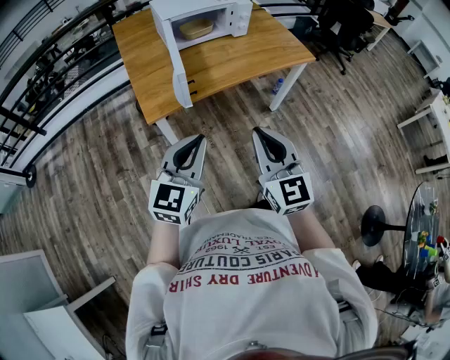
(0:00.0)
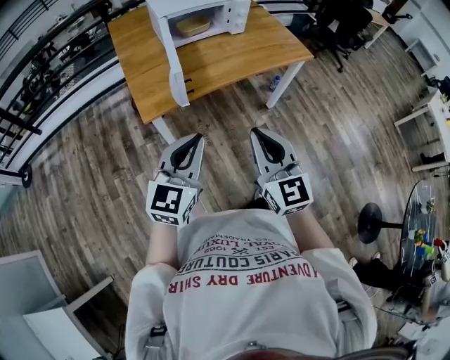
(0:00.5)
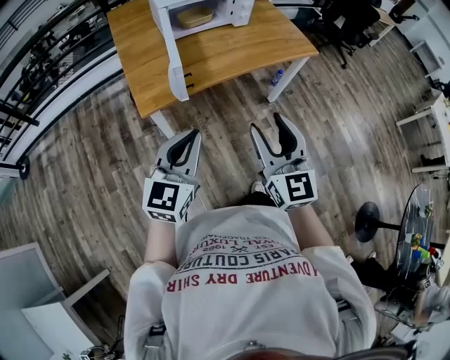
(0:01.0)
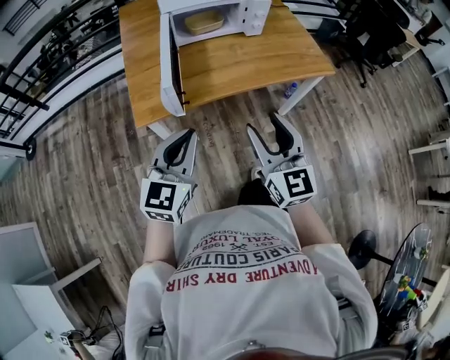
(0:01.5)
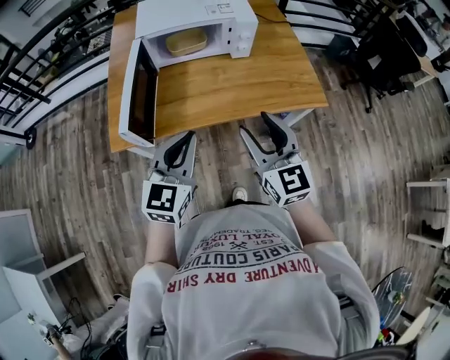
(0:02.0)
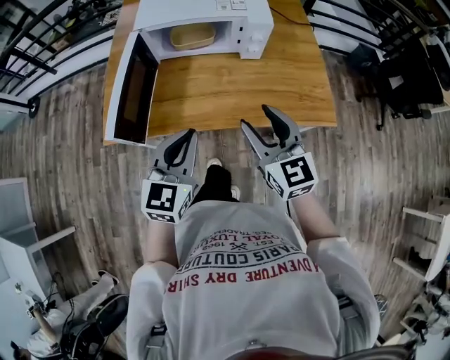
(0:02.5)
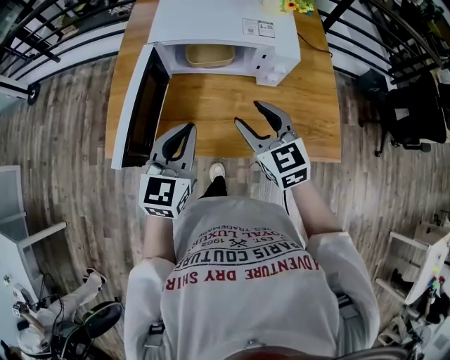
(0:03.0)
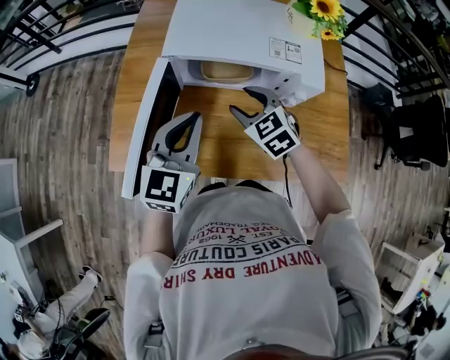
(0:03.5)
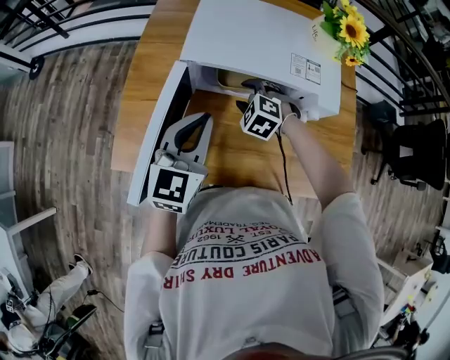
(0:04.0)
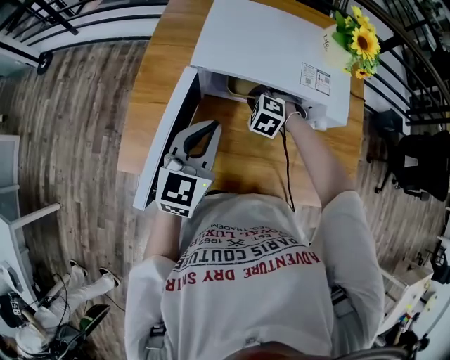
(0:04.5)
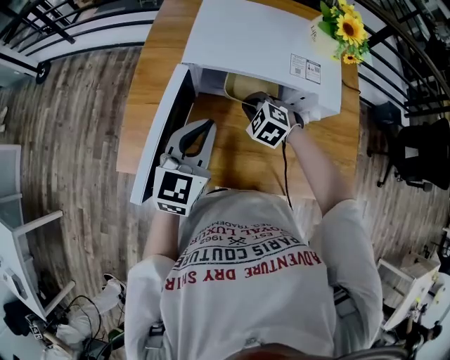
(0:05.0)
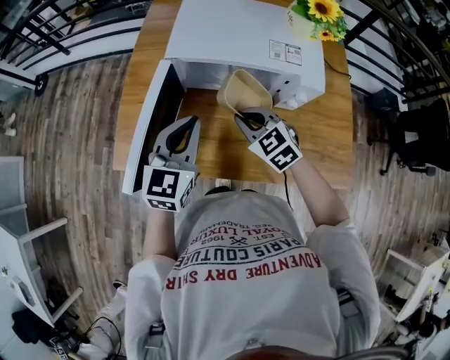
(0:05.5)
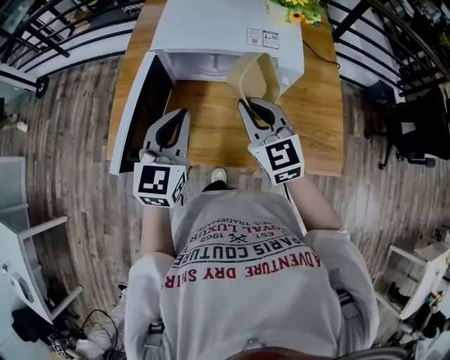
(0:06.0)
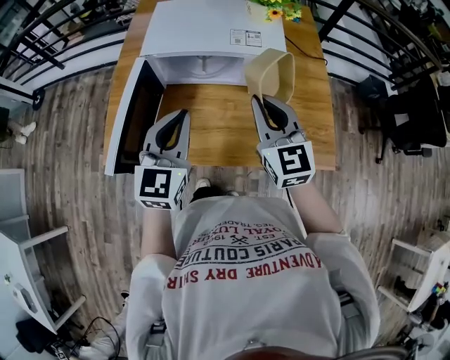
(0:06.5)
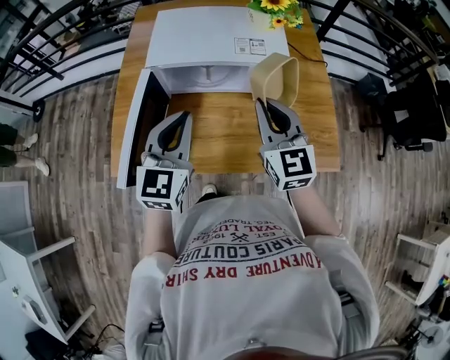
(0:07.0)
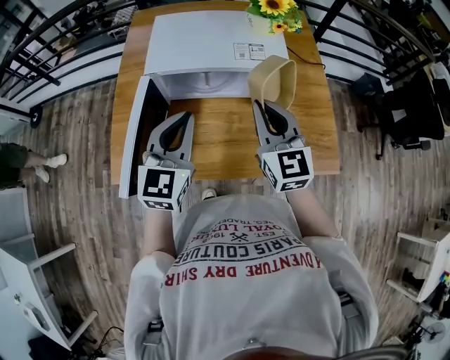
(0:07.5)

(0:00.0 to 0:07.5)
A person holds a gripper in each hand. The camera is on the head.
0:00.0 - 0:02.0: The grippers both shift forward and to the right by approximately 30 cm. The right gripper opens its fingers.
0:02.0 - 0:04.0: The left gripper travels forward by roughly 30 cm. Meanwhile the right gripper shifts some 50 cm forward and downward, and points its fingers about 50 degrees further downward.
0:04.0 - 0:05.5: The right gripper goes approximately 15 cm backward and upward, changes its angle by some 30 degrees, and closes.
0:05.5 - 0:07.5: The right gripper heads upward and to the right, covering about 20 cm, and changes its angle by about 40 degrees, while the left gripper moves upward, approximately 5 cm.

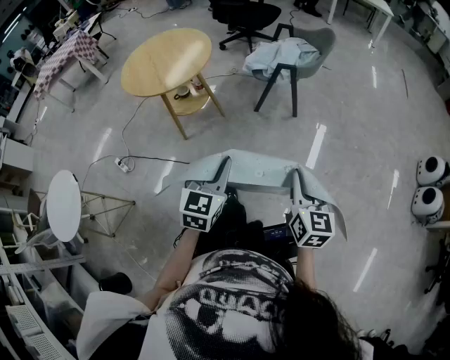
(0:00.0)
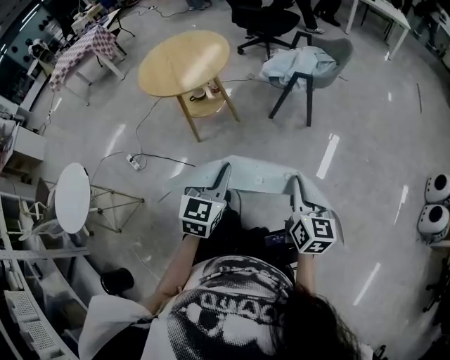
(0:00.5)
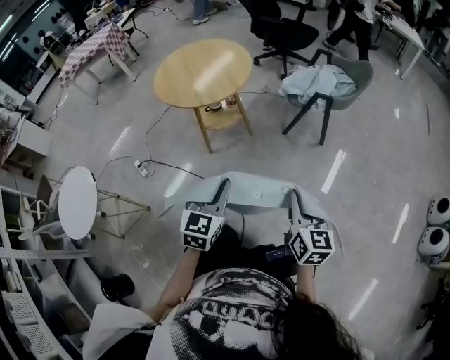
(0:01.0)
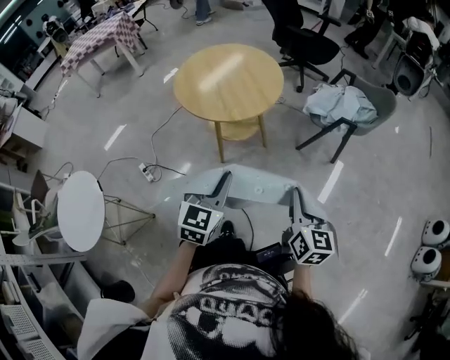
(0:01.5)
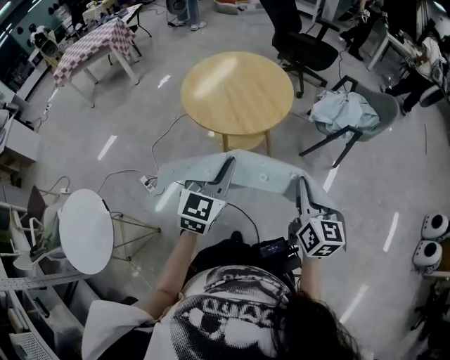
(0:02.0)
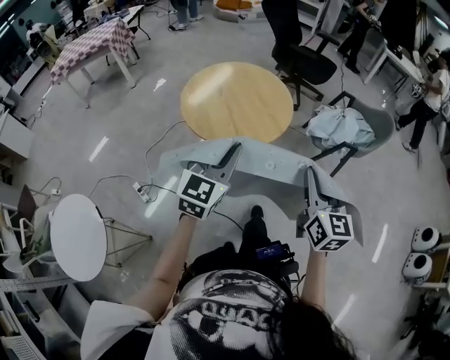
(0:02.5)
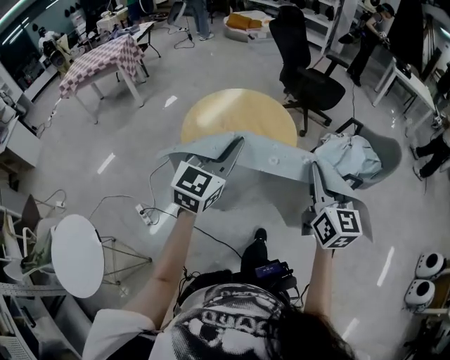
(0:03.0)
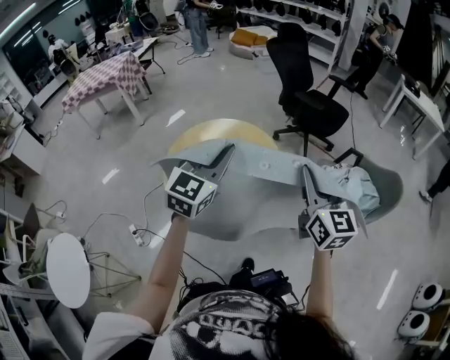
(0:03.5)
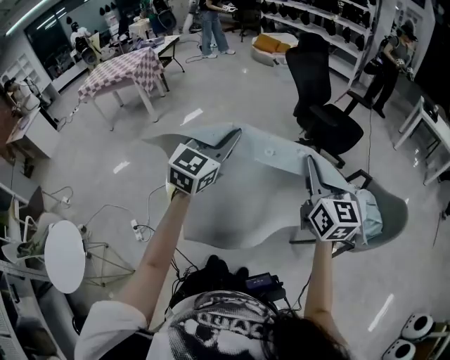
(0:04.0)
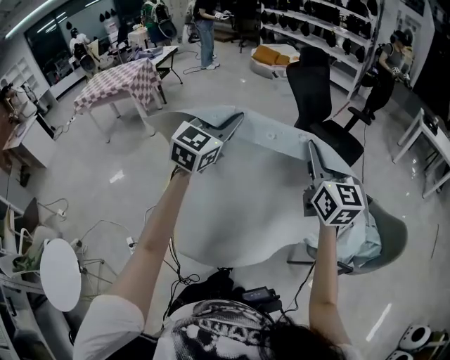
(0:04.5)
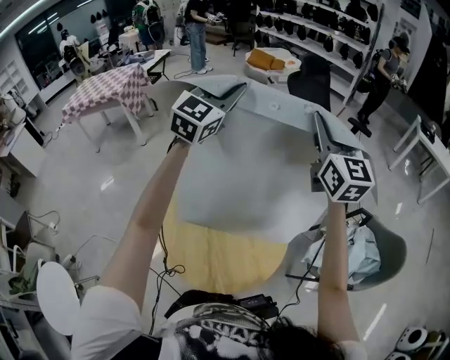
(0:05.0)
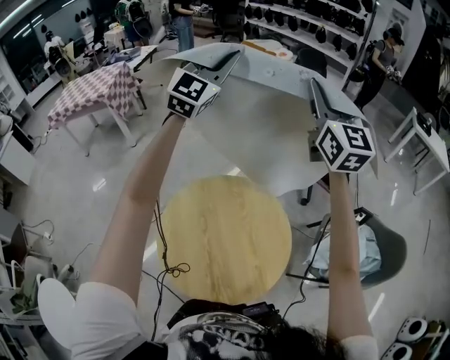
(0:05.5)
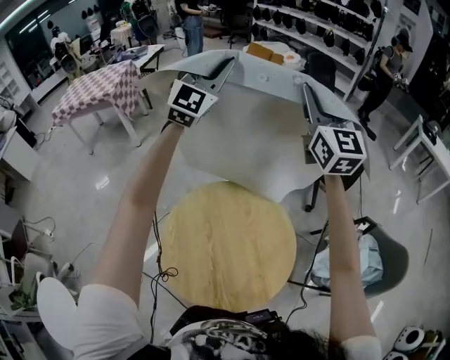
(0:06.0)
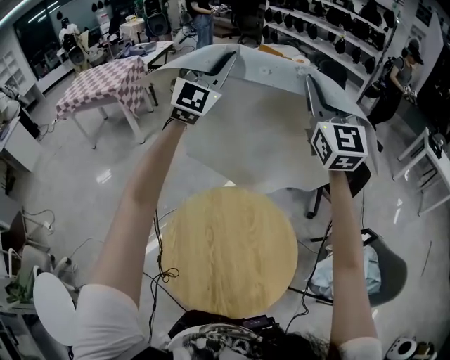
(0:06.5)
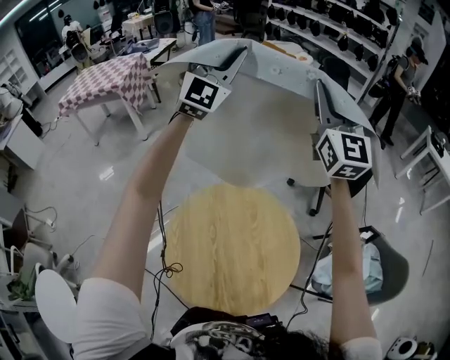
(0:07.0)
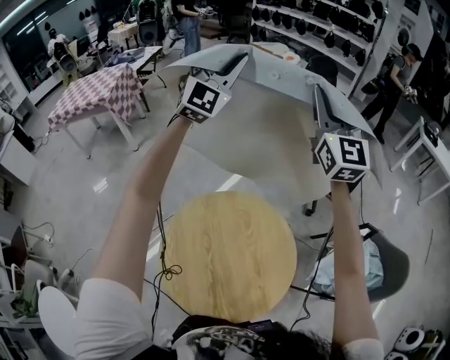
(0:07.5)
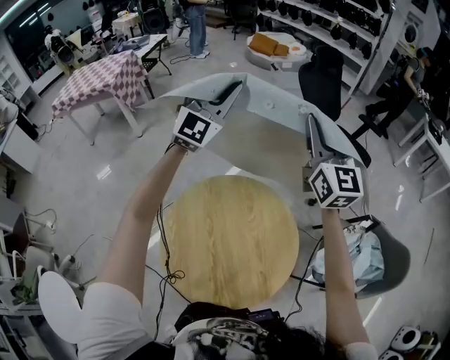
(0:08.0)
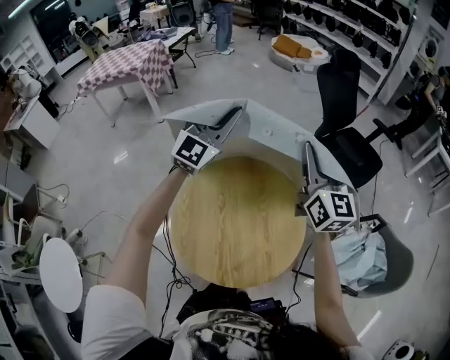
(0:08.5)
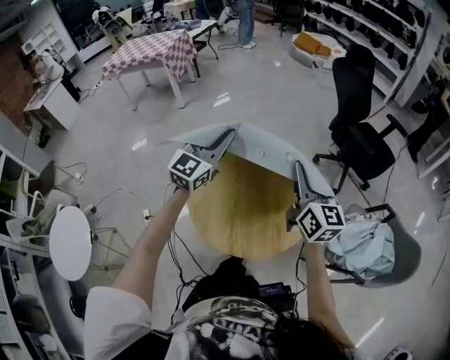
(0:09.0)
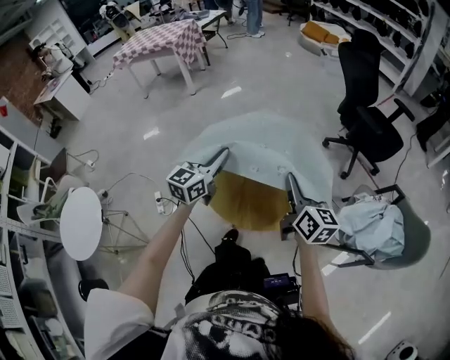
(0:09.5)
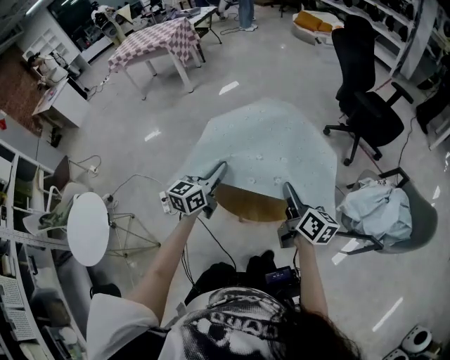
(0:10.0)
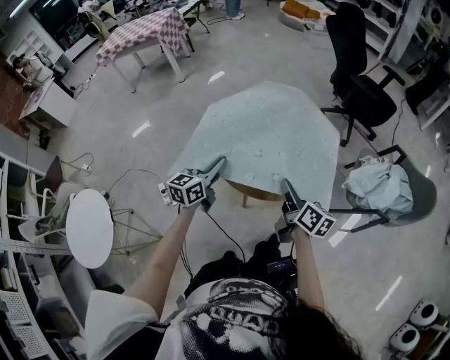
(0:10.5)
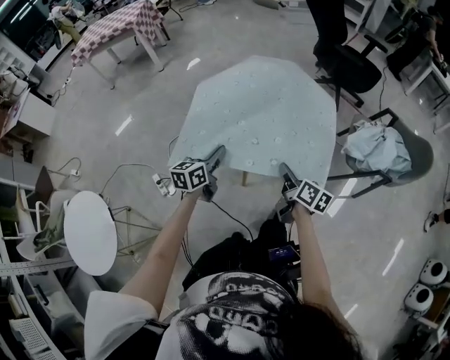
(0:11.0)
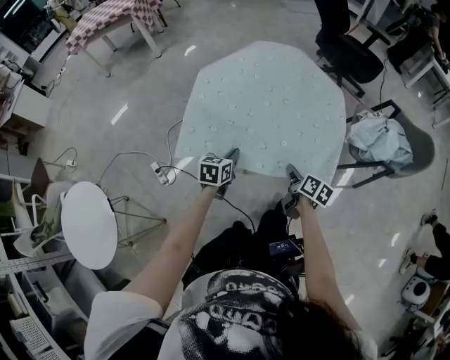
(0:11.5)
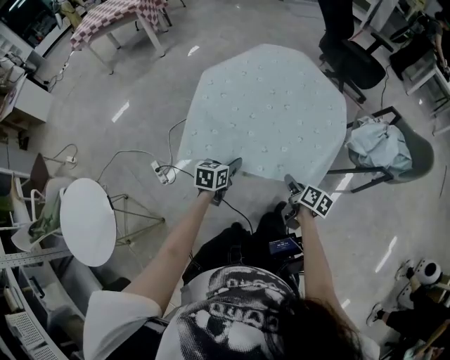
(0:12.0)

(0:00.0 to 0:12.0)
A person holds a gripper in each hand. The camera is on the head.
0:00.0 - 0:02.0: Both grippers are carried to the left and forward, approximately 40 cm.
0:02.0 - 0:04.0: The pair of grippers is taken forward, roughly 40 cm. The right gripper swivels some 20 degrees.
0:04.0 - 0:06.0: The two grippers travel together, forward and to the left, approximately 40 cm. The right gripper goes roughly 15 cm upward, and changes its angle by approximately 20 degrees. The left gripper turns by roughly 30 degrees.
0:06.0 - 0:08.0: The two grippers go some 10 cm downward.
0:08.0 - 0:10.0: The pair of grippers is taken backward, some 40 cm. Both grippers move downward, roughly 30 cm. The right gripper rotates around the line of its fingers by approximately 50 degrees, clockwise from behind, while the left gripper twists roughly 60 degrees counterclockwise, seen from behind.
0:10.0 - 0:12.0: The grippers both shift downward and backward by some 25 cm. The right gripper changes its angle by about 30 degrees, and opens its fingers. Meanwhile the left gripper swivels roughly 30 degrees, and opens its fingers.

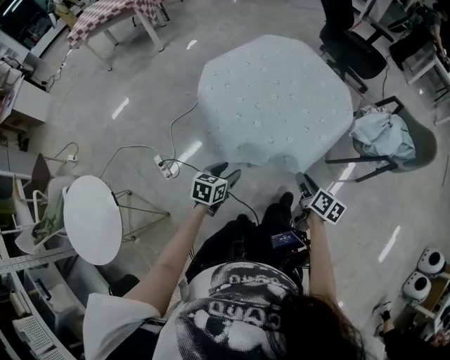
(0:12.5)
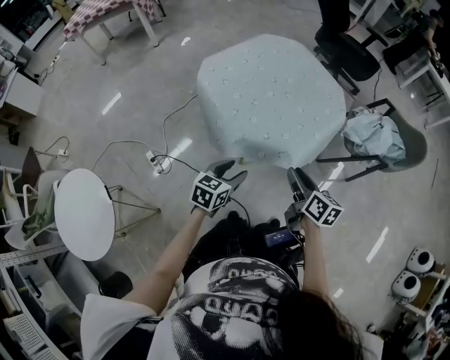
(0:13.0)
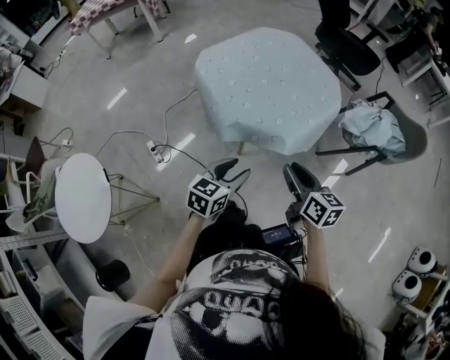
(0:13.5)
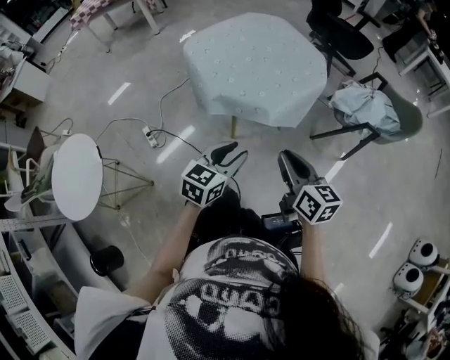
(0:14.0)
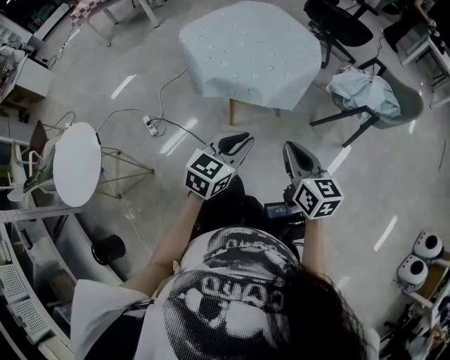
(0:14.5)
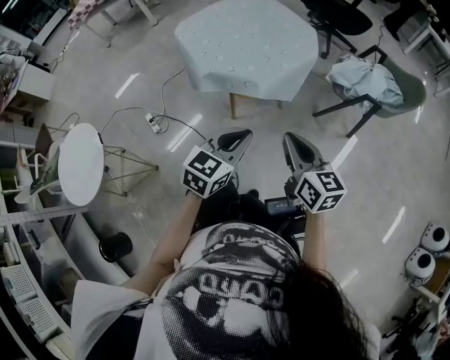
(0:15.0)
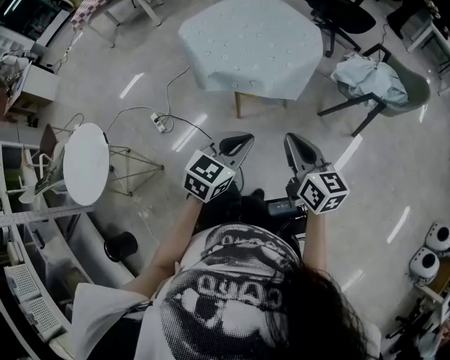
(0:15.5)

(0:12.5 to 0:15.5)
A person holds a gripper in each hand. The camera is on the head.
0:12.5 - 0:14.0: The left gripper shifts about 25 cm upward, to the right and backward, and rotates some 20 degrees. Meanwhile the right gripper is displaced upward and backward by some 20 cm, swivels some 30 degrees, and closes up.
0:14.0 - 0:15.5: The right gripper changes place by approximately 5 cm. Meanwhile the left gripper heads to the right and backward, covering some 10 cm, and closes up.

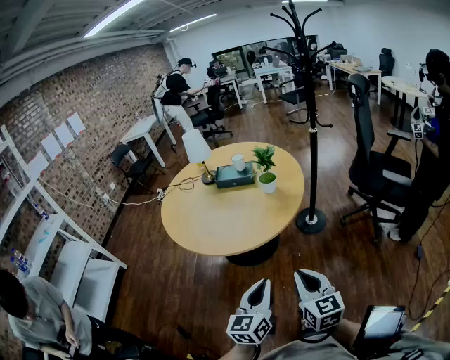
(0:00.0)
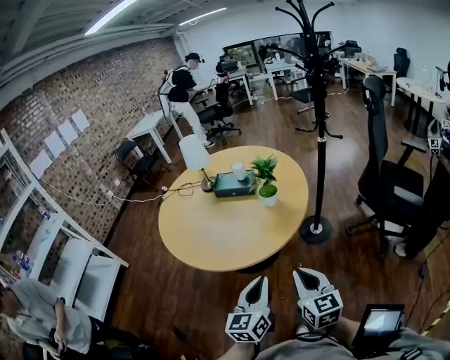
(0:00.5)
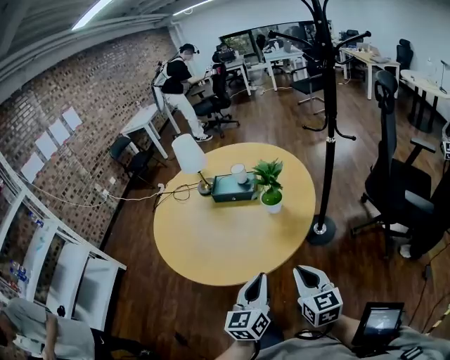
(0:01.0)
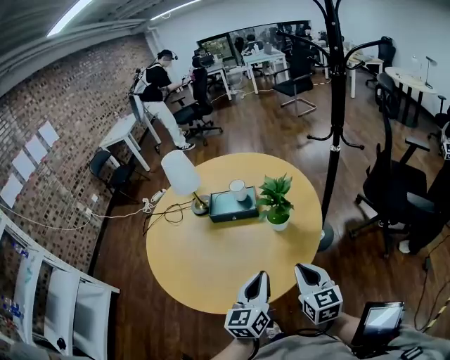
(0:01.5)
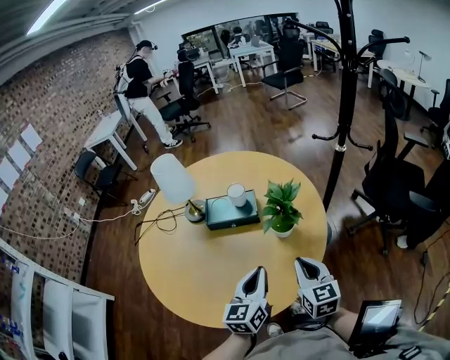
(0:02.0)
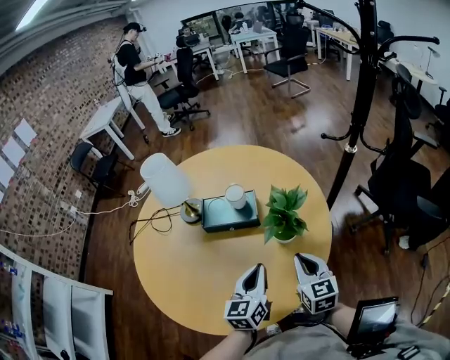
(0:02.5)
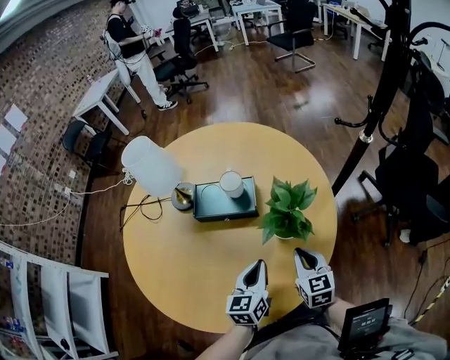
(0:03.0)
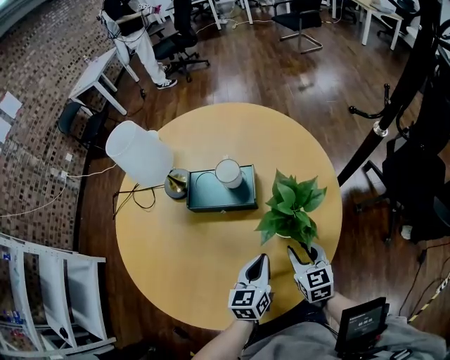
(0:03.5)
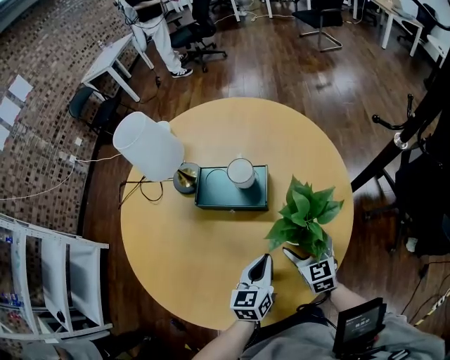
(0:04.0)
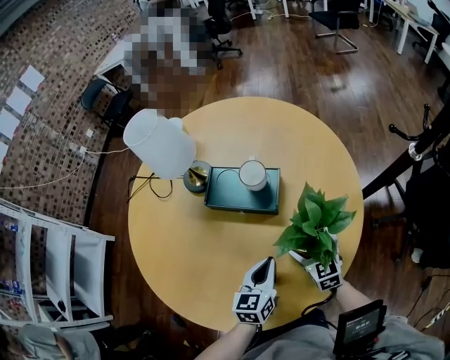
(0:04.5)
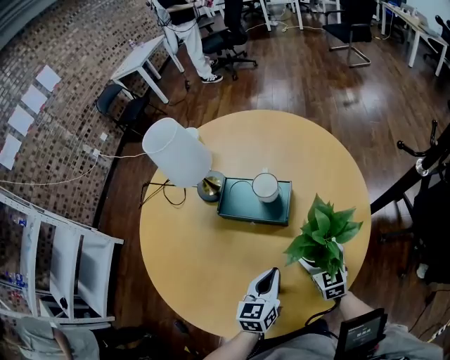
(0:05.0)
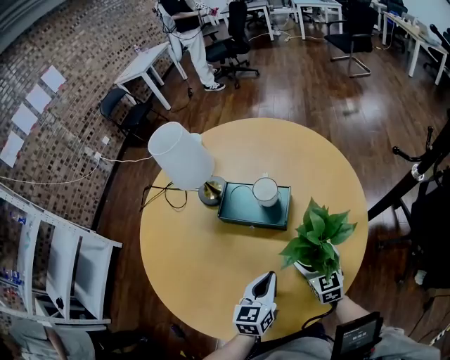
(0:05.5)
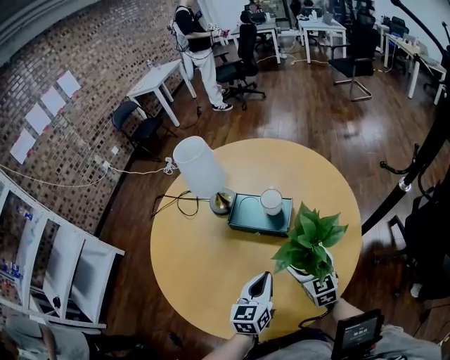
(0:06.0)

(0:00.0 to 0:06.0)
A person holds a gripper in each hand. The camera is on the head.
0:00.0 - 0:02.0: The two grippers travel together, forward, some 50 cm.
0:02.0 - 0:04.0: The left gripper moves downward and forward, about 25 cm; the right gripper heads forward and downward, covering approximately 30 cm, rotates approximately 20 degrees, and opens its fingers.
0:04.0 - 0:06.0: The two grippers go approximately 10 cm upward.
